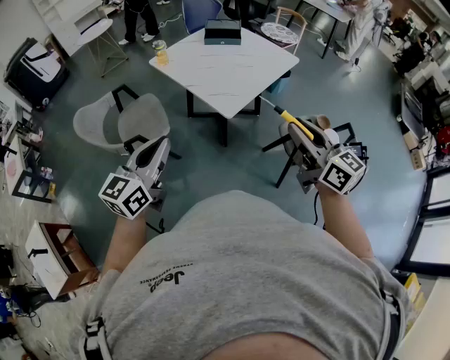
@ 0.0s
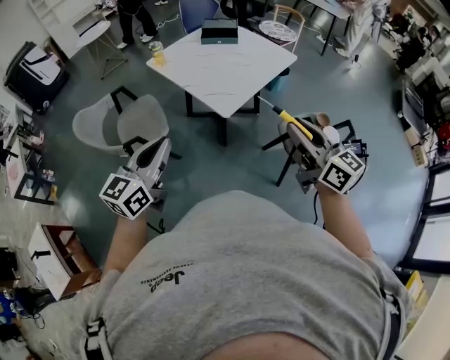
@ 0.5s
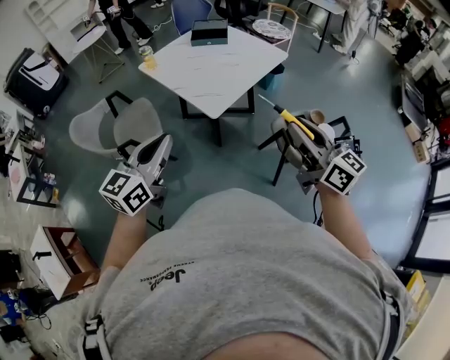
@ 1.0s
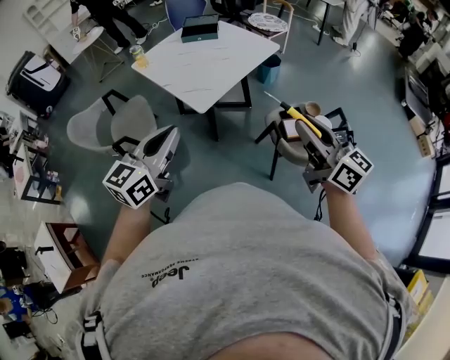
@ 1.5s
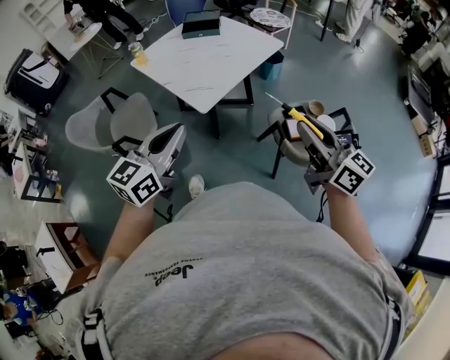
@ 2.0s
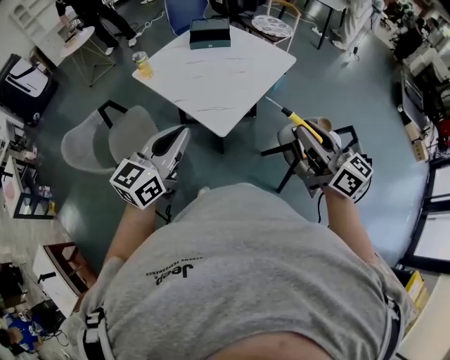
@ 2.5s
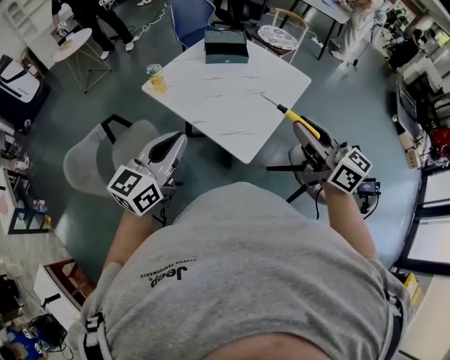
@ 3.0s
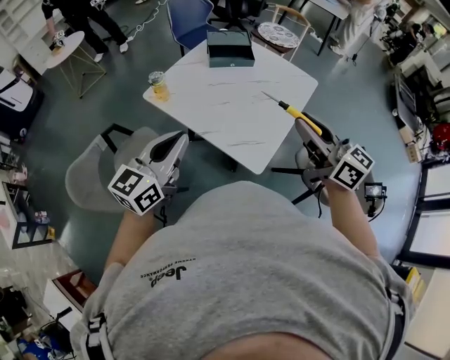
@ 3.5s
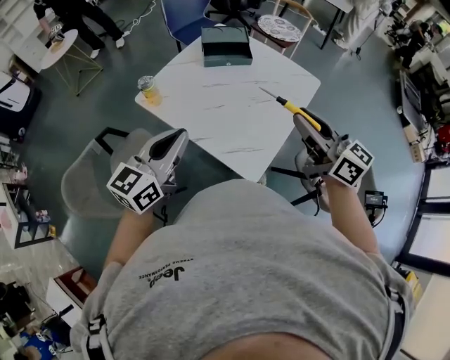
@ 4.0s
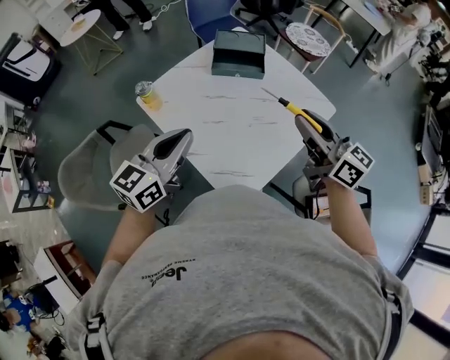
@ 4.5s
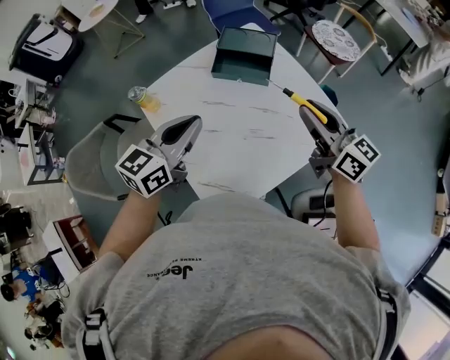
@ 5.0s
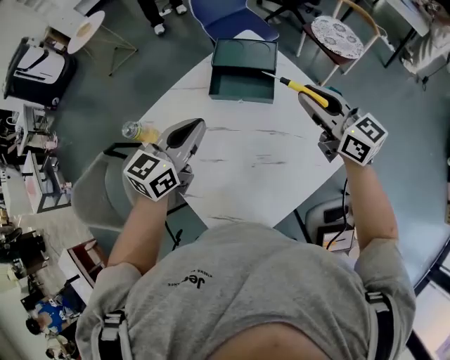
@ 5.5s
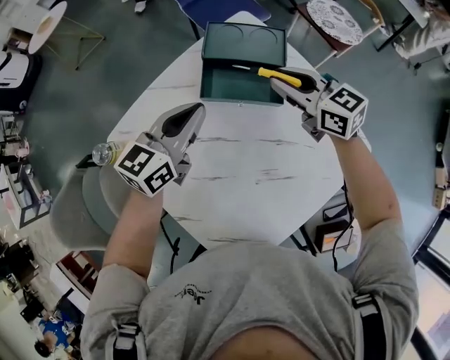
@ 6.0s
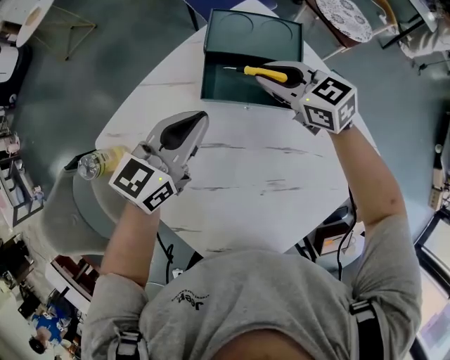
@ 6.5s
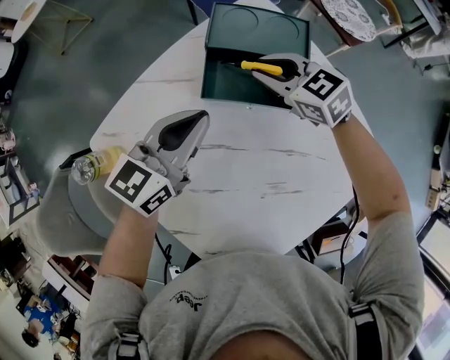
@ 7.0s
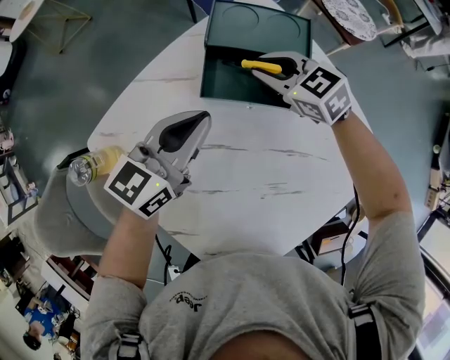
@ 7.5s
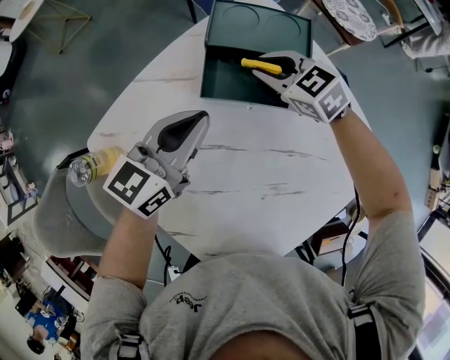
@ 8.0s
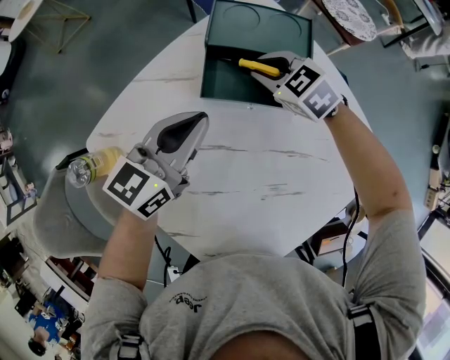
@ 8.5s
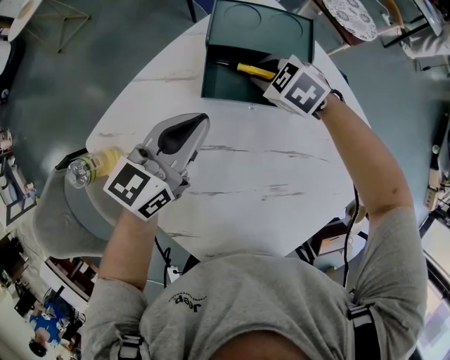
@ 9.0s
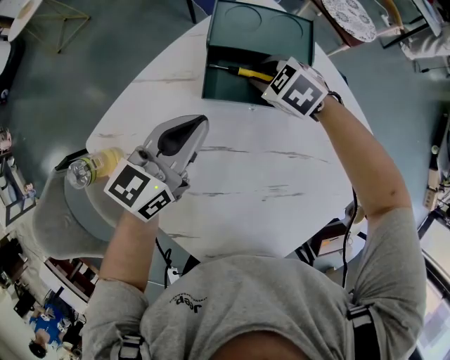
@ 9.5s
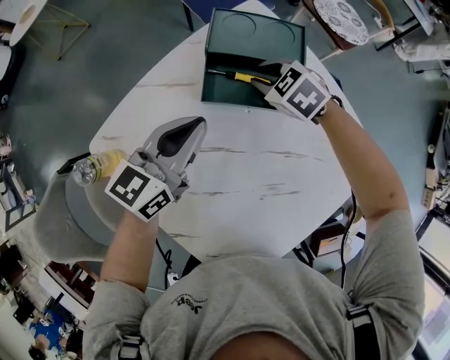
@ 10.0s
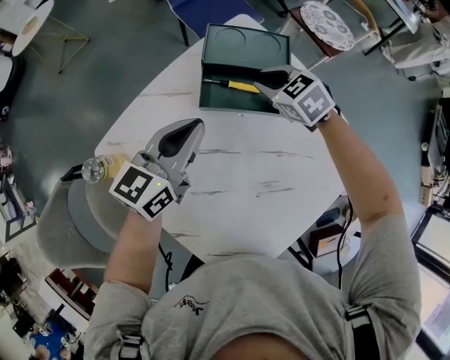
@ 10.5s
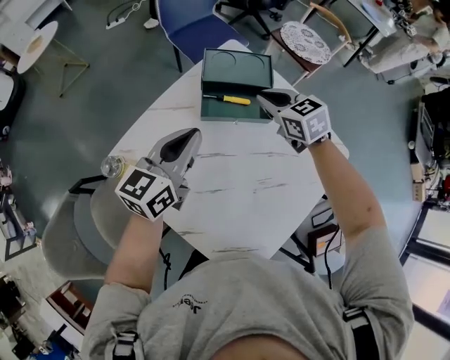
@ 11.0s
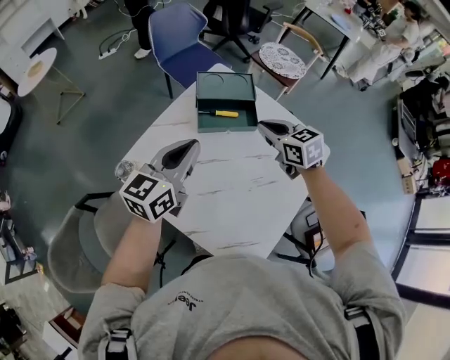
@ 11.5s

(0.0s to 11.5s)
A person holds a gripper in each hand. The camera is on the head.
0.0s - 2.0s: Both grippers move to the right, about 15 cm.
2.0s - 4.0s: The pair of grippers is taken forward and to the left, some 40 cm.
4.0s - 6.0s: The pair of grippers is taken forward, some 40 cm. The grippers both shift downward by about 20 cm. The right gripper turns by approximately 30 degrees.
6.0s - 7.5s: The right gripper moves downward, to the left and forward, about 15 cm, and swivels approximately 30 degrees.
7.5s - 9.5s: The right gripper travels downward by approximately 5 cm, and rotates approximately 20 degrees.
9.5s - 11.5s: Both grippers travel together upward and backward, roughly 20 cm. The right gripper rotates approximately 50 degrees, and closes up.

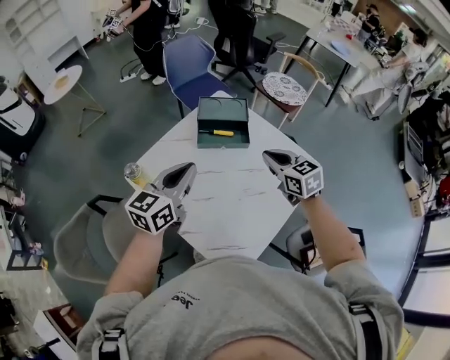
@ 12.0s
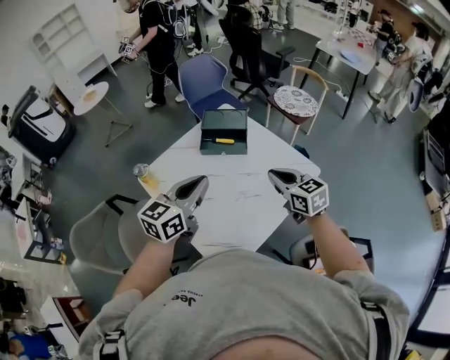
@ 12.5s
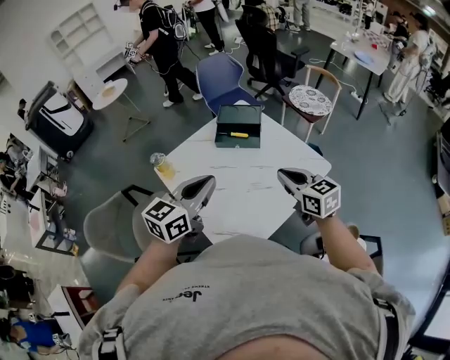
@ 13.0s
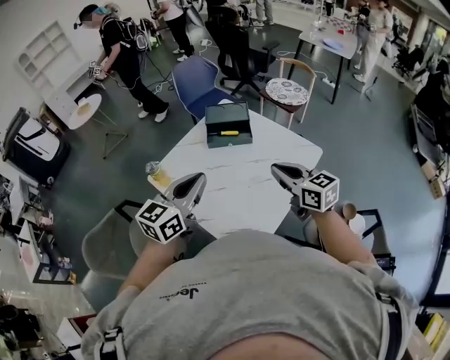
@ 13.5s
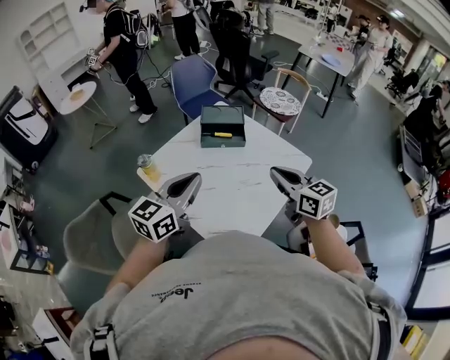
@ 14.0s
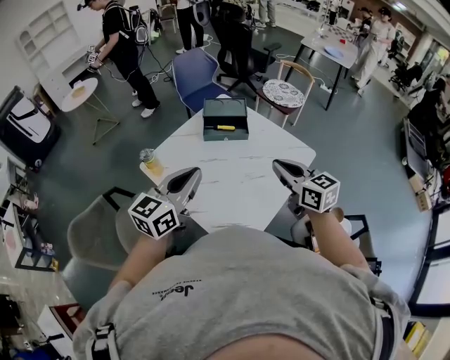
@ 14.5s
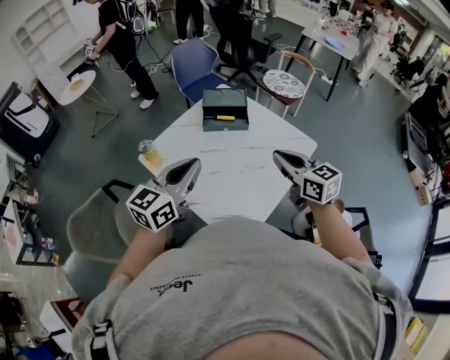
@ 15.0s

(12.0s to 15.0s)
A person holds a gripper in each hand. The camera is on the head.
12.0s - 13.5s: Both grippers travel together backward and upward, about 15 cm.
13.5s - 15.0s: The grippers move only a little.

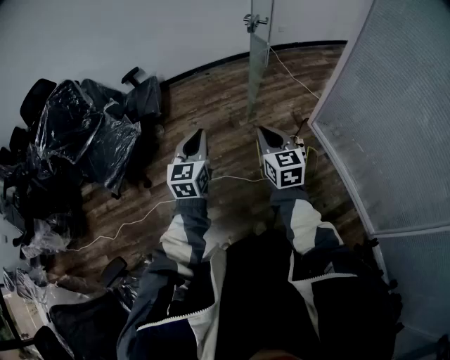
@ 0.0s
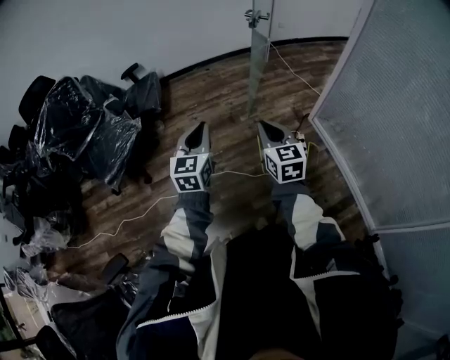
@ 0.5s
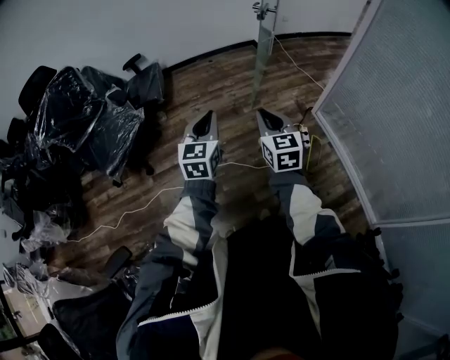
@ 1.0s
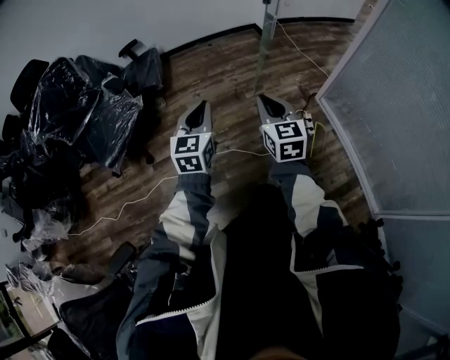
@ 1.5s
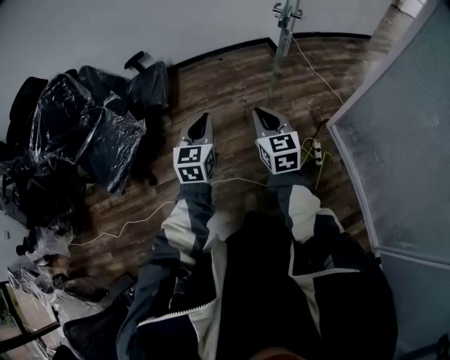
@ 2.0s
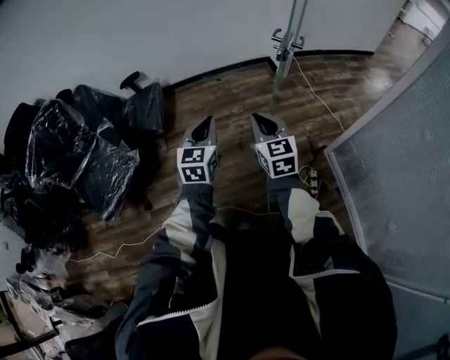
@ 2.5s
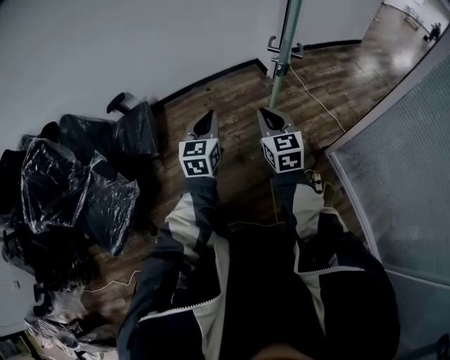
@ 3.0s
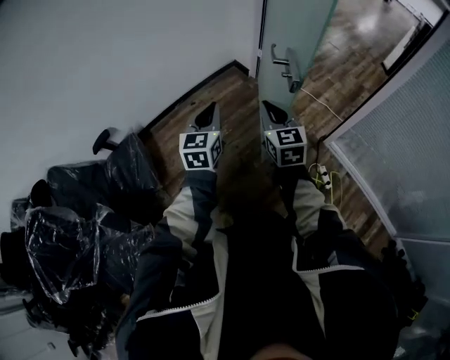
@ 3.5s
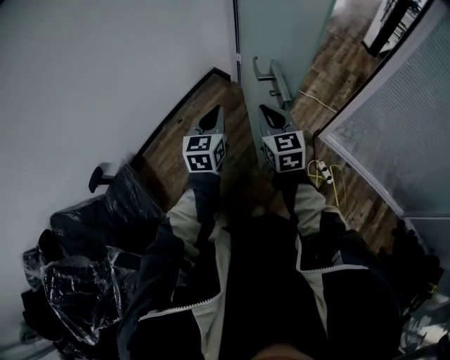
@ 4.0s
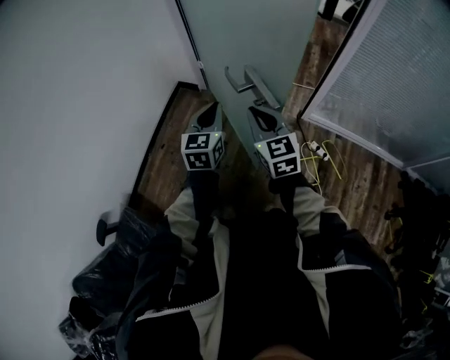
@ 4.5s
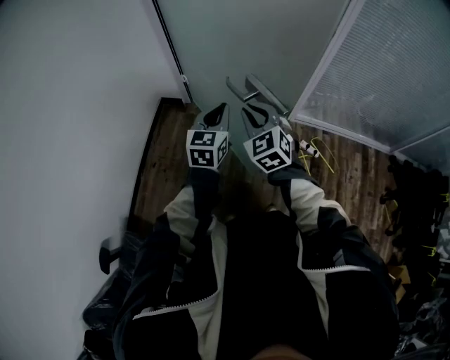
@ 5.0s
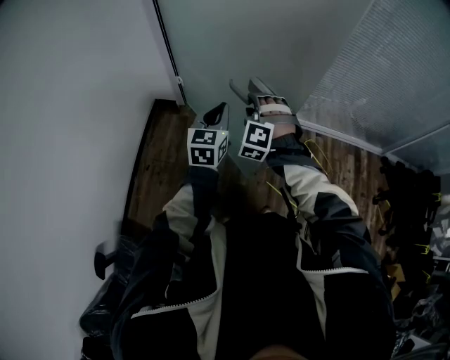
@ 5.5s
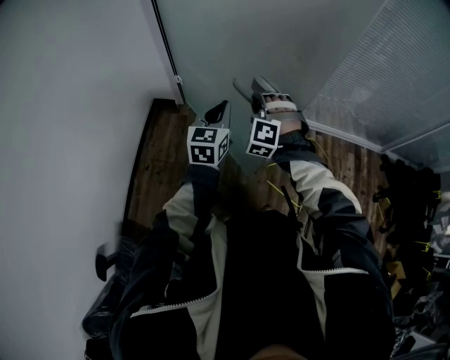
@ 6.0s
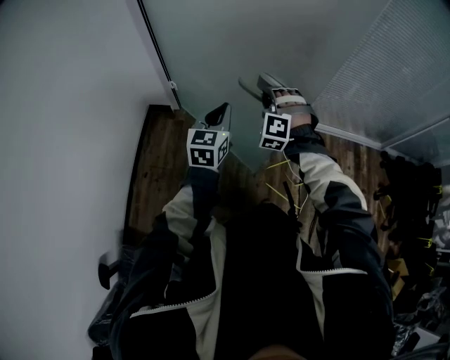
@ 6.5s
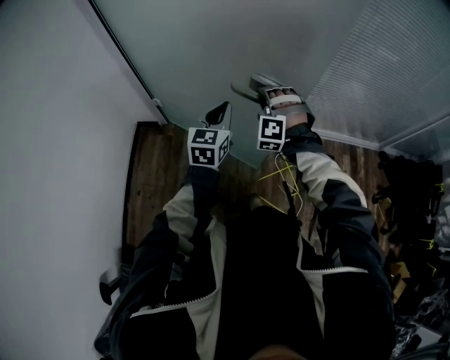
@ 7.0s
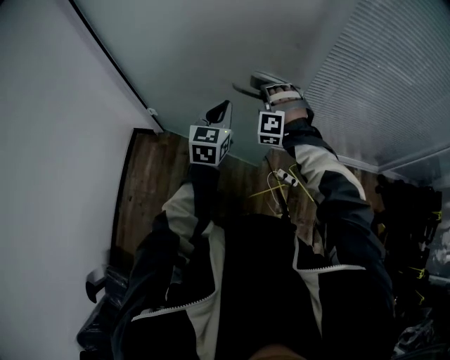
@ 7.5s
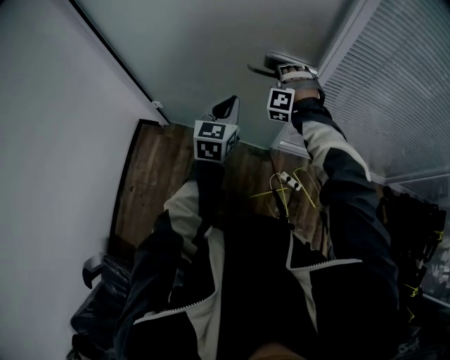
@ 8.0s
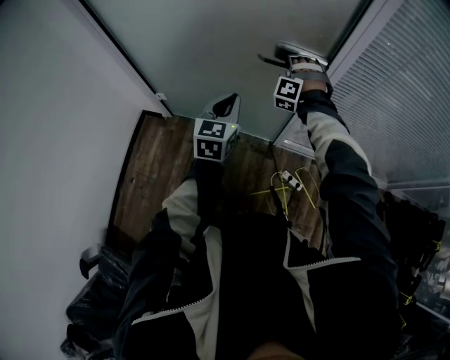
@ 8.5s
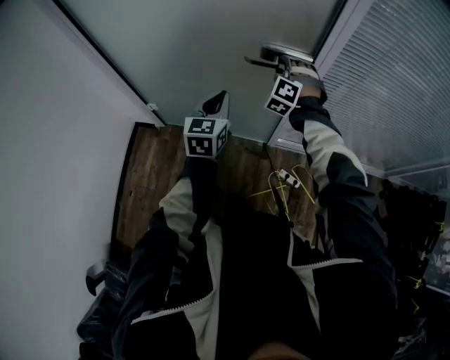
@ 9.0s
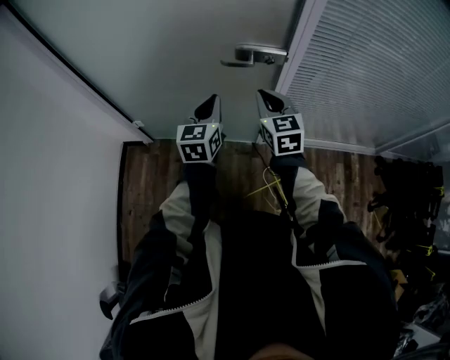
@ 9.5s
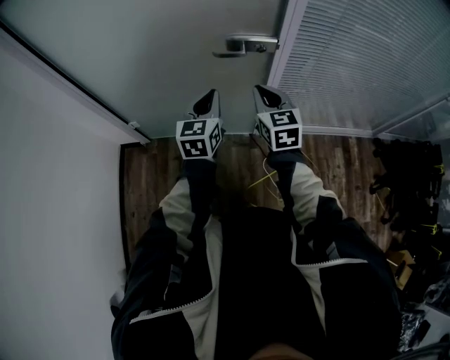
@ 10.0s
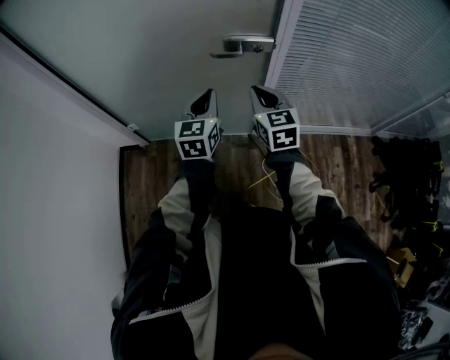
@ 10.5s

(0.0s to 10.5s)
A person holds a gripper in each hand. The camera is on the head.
0.0s - 2.0s: Both grippers move forward, some 20 cm.
2.0s - 4.0s: The pair of grippers is taken about 50 cm. The left gripper changes its angle by approximately 30 degrees; the right gripper turns by roughly 30 degrees.
4.0s - 6.5s: The left gripper moves some 20 cm, and rotates roughly 40 degrees, while the right gripper ends up about 20 cm from where it was, swivels approximately 80 degrees, and opens.
6.5s - 8.5s: Both grippers move forward, about 35 cm.
8.5s - 10.5s: The right gripper is displaced backward by approximately 20 cm, twists some 90 degrees clockwise, seen from behind, and closes its fingers.

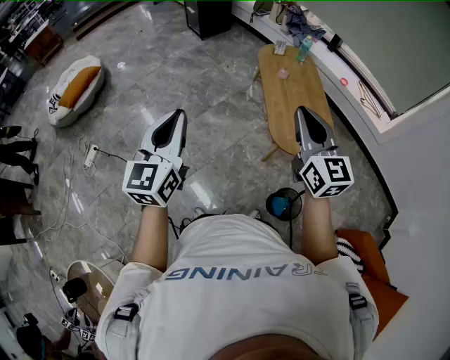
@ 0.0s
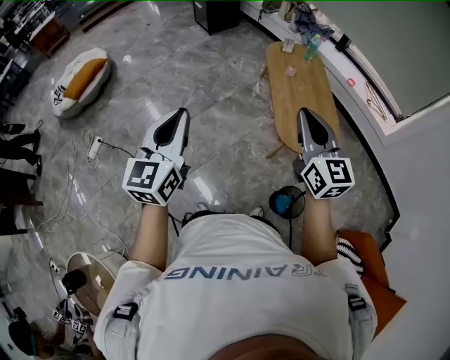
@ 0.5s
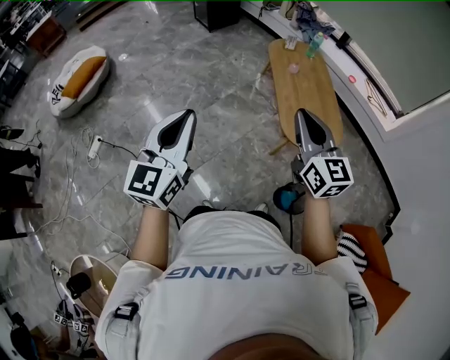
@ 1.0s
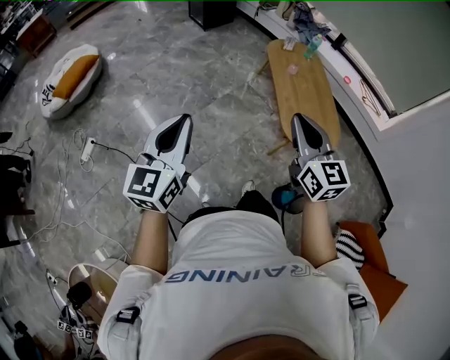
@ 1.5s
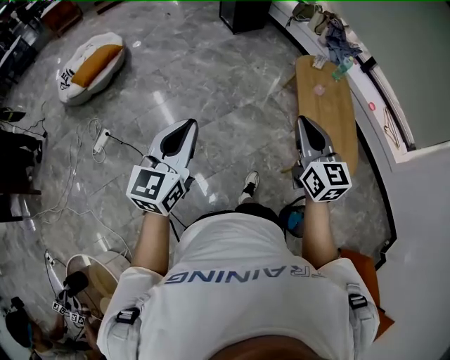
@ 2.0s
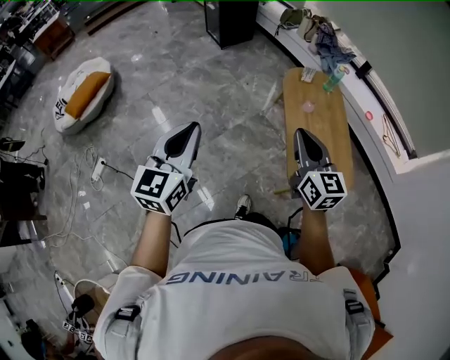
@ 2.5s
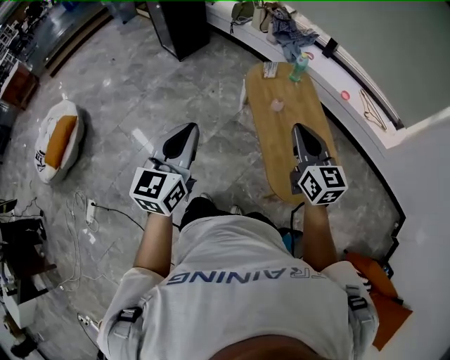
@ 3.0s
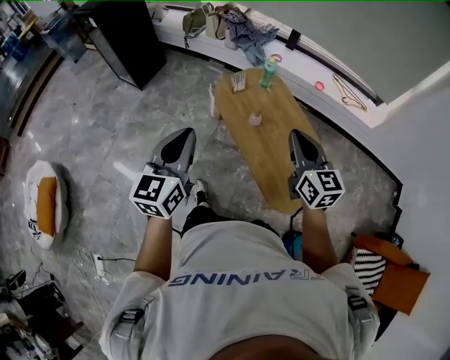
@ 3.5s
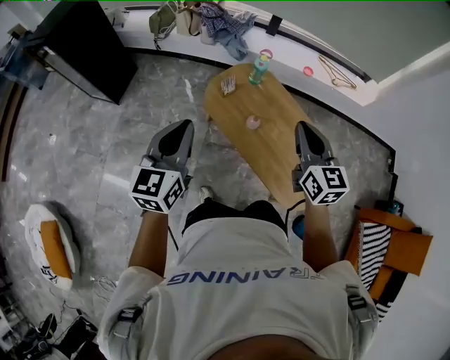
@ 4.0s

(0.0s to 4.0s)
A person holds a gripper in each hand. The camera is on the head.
0.0s - 2.0s: The left gripper goes approximately 15 cm to the left and forward. The right gripper is displaced to the left, forward and downward by about 20 cm.
2.0s - 4.0s: Both grippers are carried approximately 70 cm. The left gripper swivels about 40 degrees. Meanwhile the right gripper swivels about 50 degrees.
